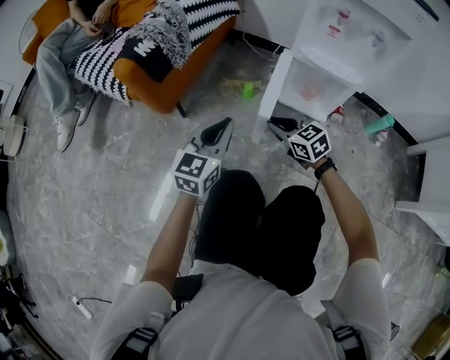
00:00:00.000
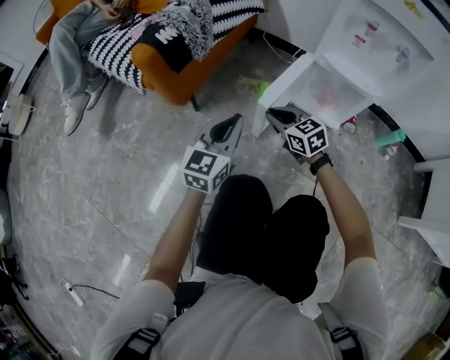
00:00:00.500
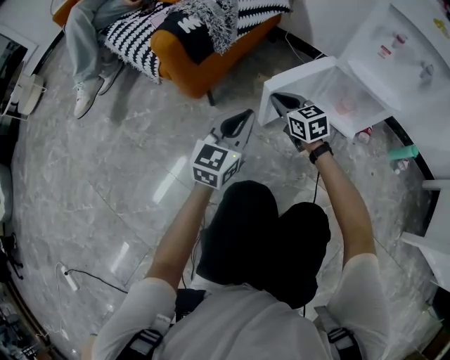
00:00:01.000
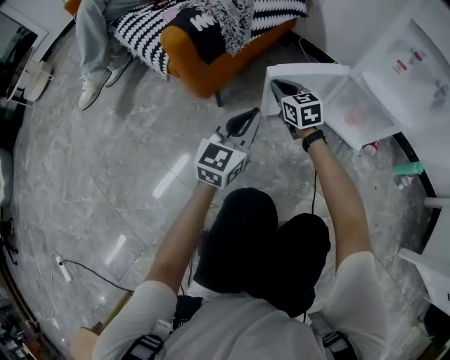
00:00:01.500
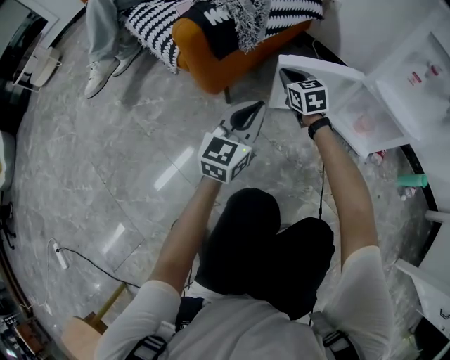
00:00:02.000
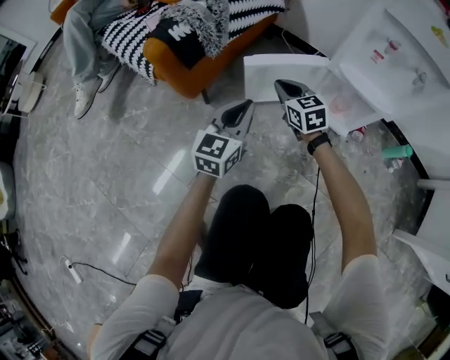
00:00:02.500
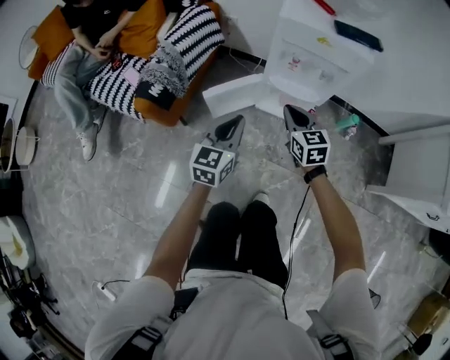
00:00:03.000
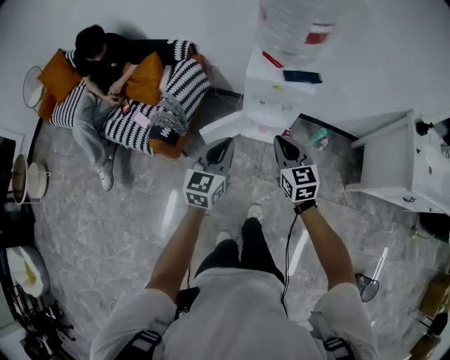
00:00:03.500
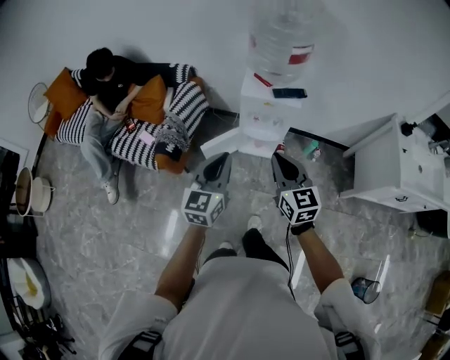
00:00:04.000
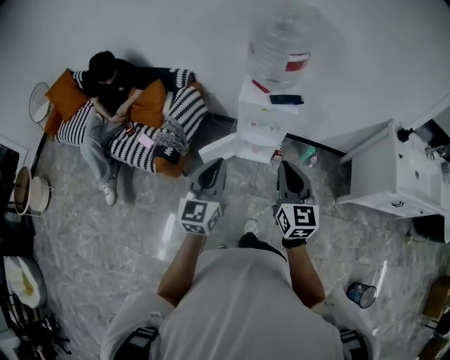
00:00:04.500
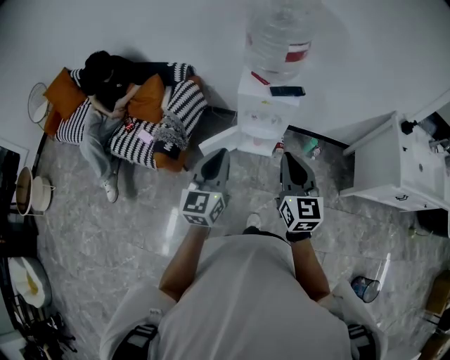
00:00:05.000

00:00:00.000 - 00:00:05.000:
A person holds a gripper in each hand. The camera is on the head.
00:00:00.000 - 00:00:02.500: The left gripper travels forward by some 5 cm. The right gripper goes approximately 15 cm forward, to the left and upward.
00:00:02.500 - 00:00:05.000: Both grippers move upward, approximately 60 cm. The right gripper changes its angle by some 40 degrees.

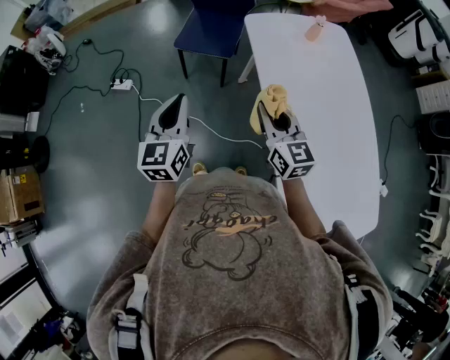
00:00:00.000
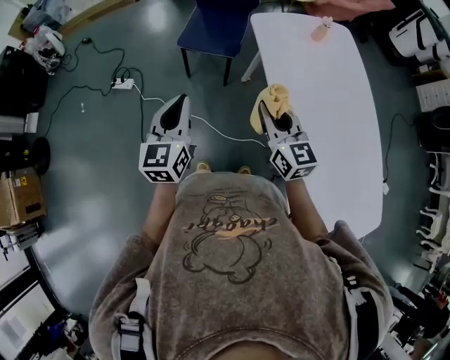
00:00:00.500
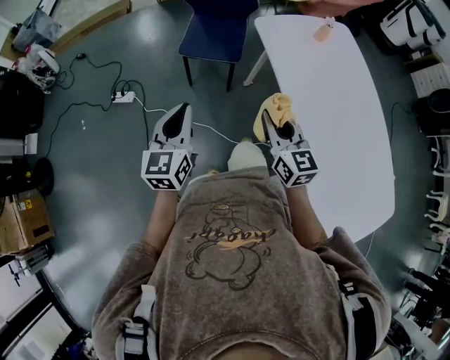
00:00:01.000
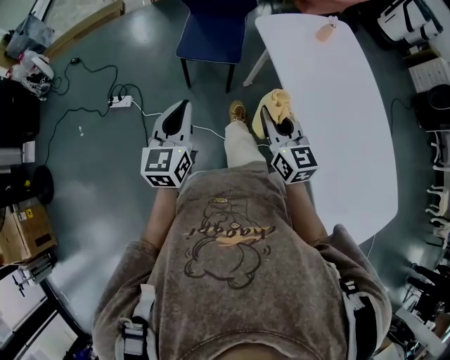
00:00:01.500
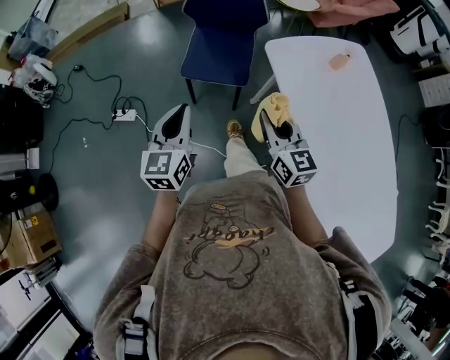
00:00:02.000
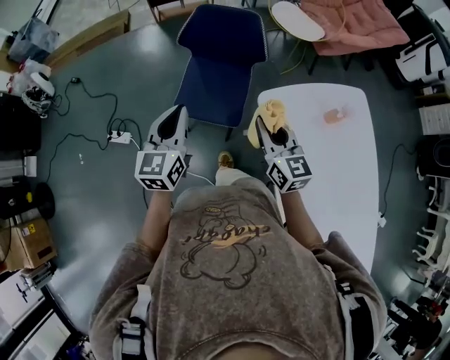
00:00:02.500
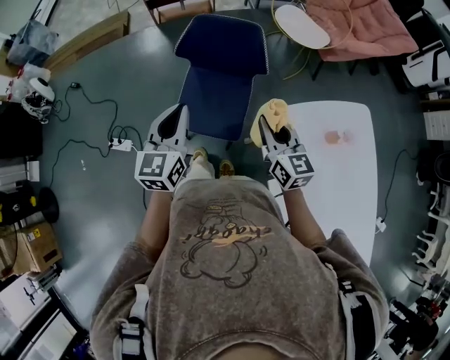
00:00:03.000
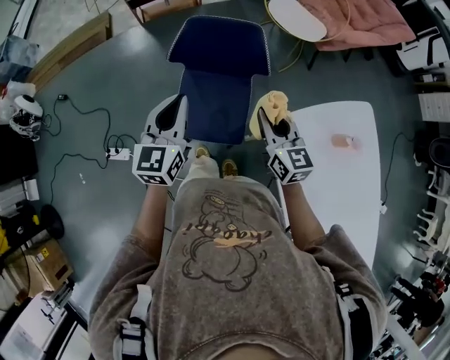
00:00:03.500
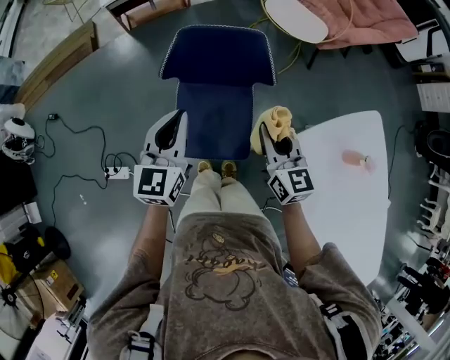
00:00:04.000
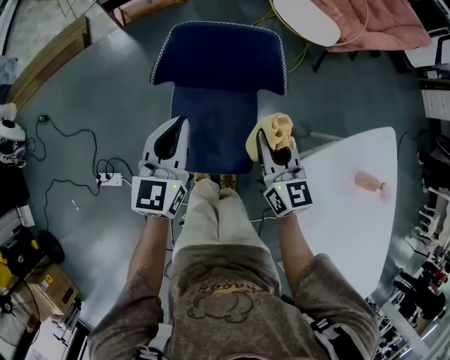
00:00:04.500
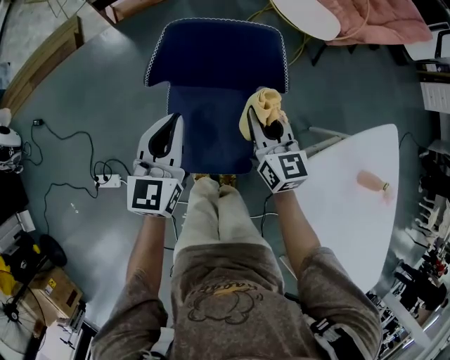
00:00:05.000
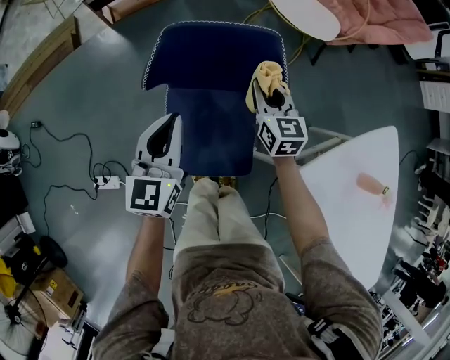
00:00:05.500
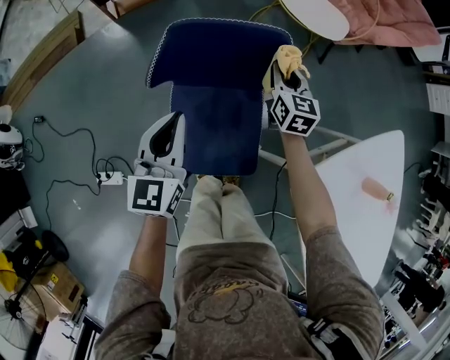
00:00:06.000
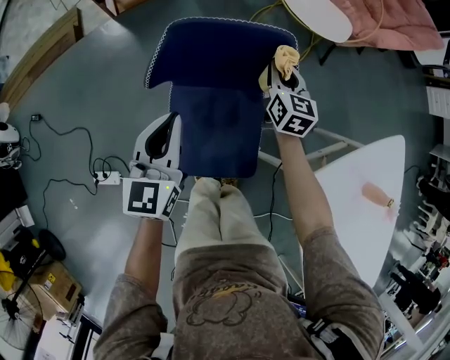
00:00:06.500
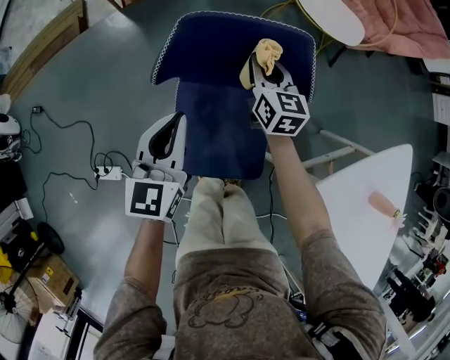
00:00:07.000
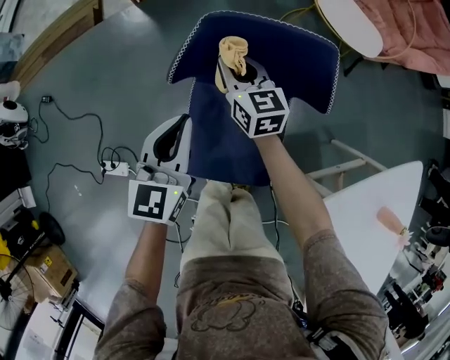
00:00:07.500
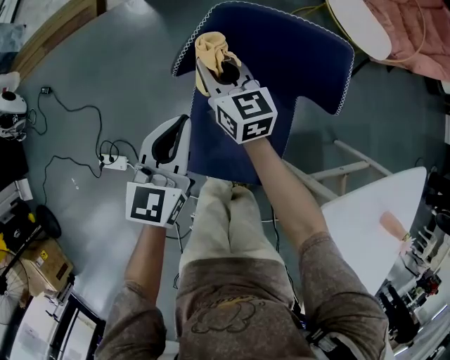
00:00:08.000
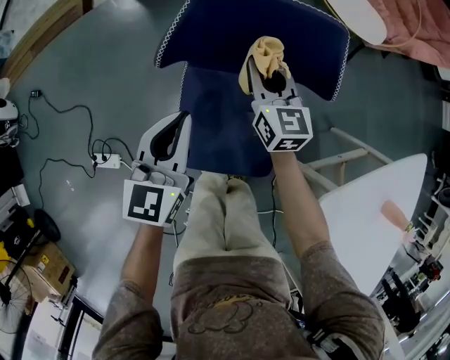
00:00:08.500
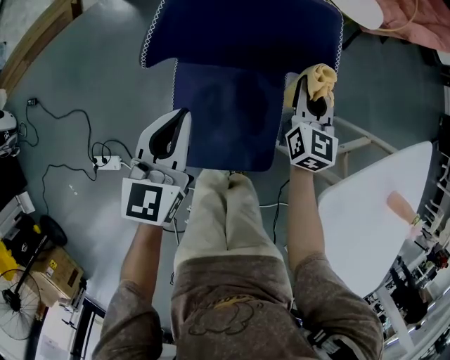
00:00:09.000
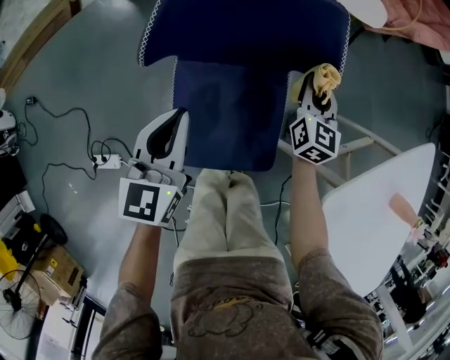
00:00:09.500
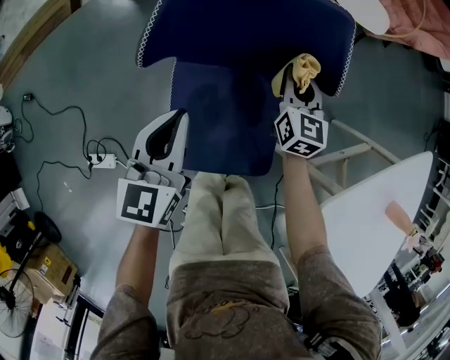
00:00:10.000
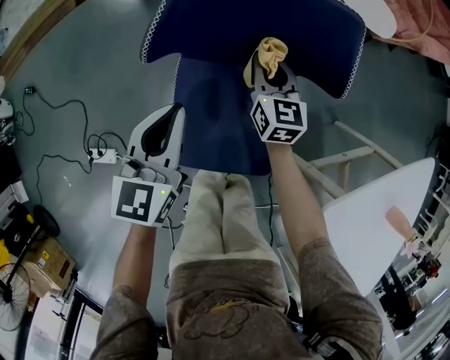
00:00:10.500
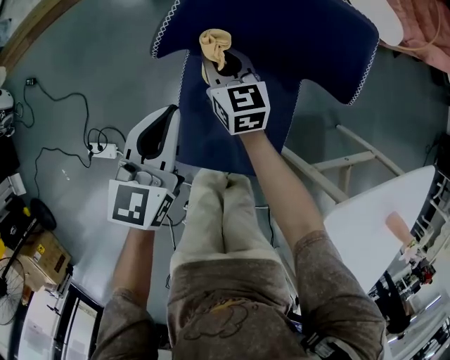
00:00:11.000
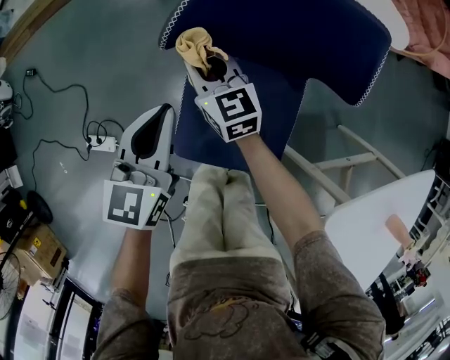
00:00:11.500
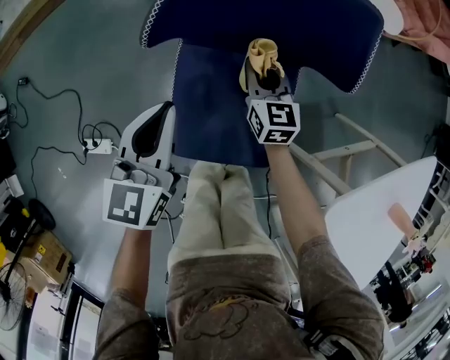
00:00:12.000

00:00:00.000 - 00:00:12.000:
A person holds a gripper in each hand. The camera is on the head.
00:00:00.000 - 00:00:02.000: Both grippers move forward and to the left, roughly 25 cm.
00:00:02.000 - 00:00:04.000: The two grippers travel together, forward, some 50 cm.
00:00:04.000 - 00:00:06.000: The left gripper heads downward and forward, covering some 15 cm. Meanwhile the right gripper is displaced forward and downward by roughly 30 cm.
00:00:06.000 - 00:00:08.000: The right gripper travels to the left by roughly 30 cm, and swivels about 30 degrees. Meanwhile the left gripper goes about 10 cm downward and to the left.
00:00:08.000 - 00:00:10.000: The left gripper moves downward, approximately 5 cm, while the right gripper moves roughly 30 cm, and swivels some 40 degrees.
00:00:10.000 - 00:00:12.000: The right gripper is displaced to the left and downward by roughly 15 cm.

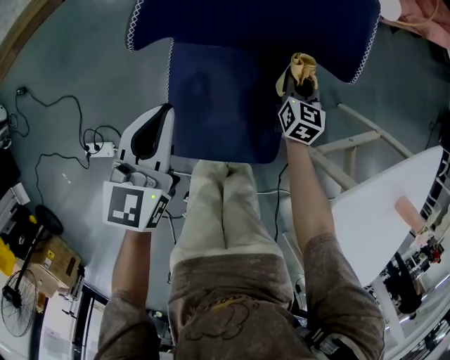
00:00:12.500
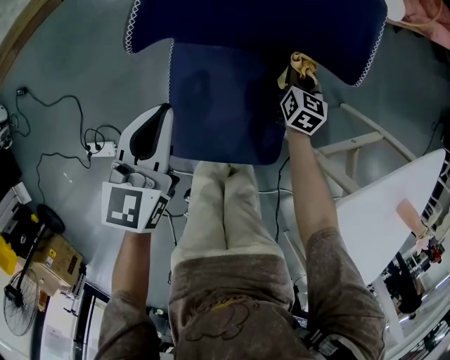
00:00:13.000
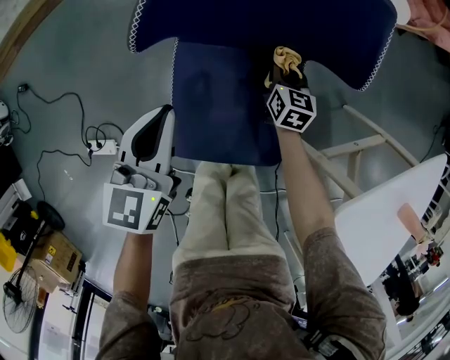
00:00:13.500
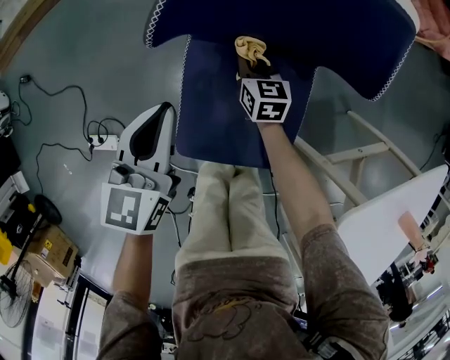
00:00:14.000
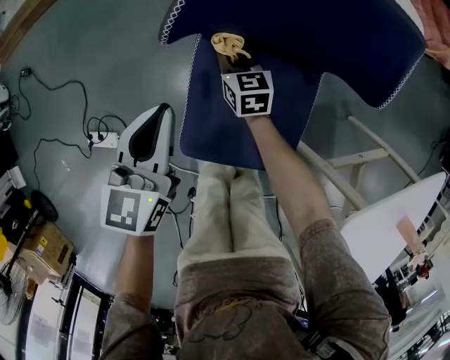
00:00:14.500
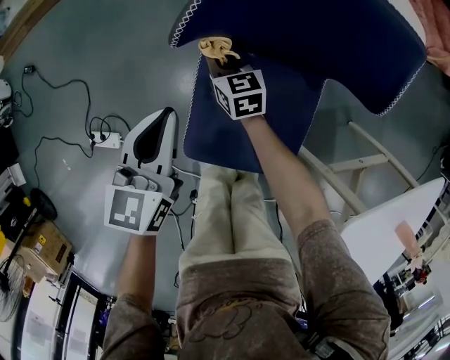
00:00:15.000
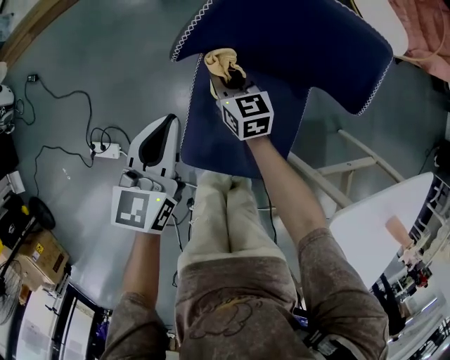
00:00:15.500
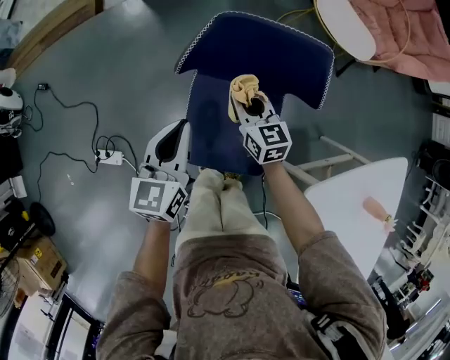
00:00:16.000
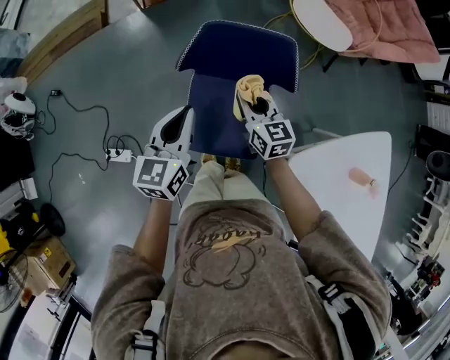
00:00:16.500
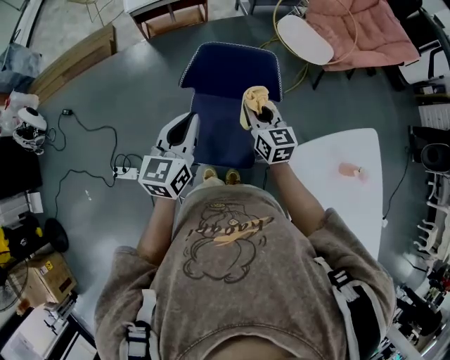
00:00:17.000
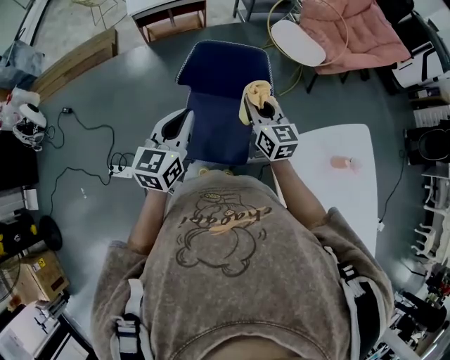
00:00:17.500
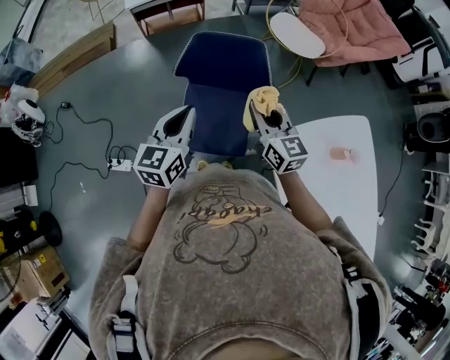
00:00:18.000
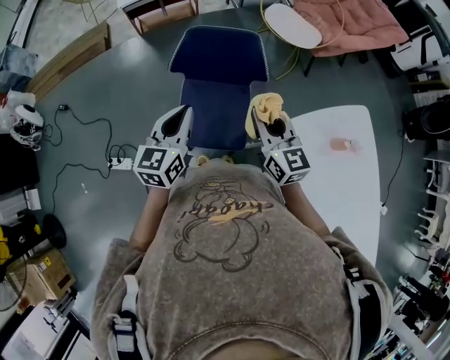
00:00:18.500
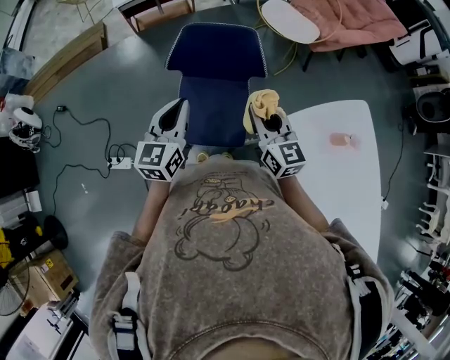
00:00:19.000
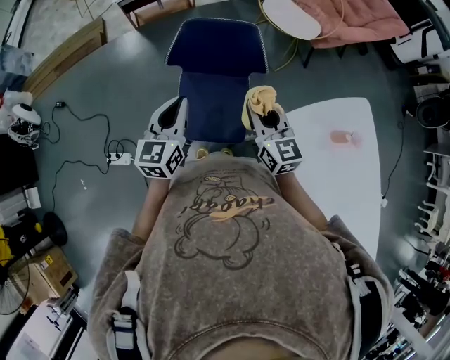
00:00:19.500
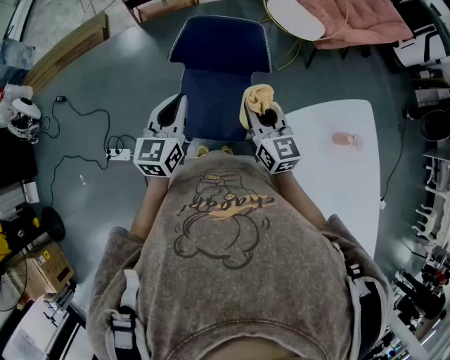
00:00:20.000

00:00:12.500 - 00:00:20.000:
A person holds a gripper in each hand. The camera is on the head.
00:00:12.500 - 00:00:14.500: The left gripper shifts some 5 cm to the left. The right gripper shifts some 25 cm to the left, and swivels some 30 degrees.
00:00:14.500 - 00:00:16.500: The grippers both shift upward by some 30 cm.
00:00:16.500 - 00:00:18.000: The right gripper goes roughly 25 cm upward, backward and to the right. Meanwhile the left gripper heads backward and upward, covering approximately 15 cm.
00:00:18.000 - 00:00:20.000: The grippers stay close to where they were, moving slightly.

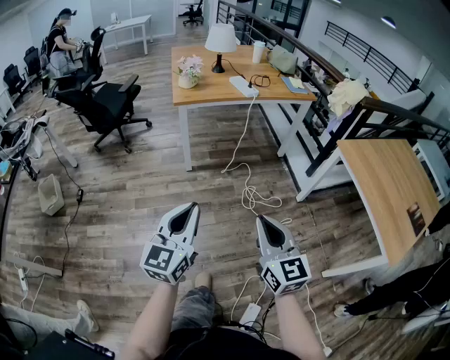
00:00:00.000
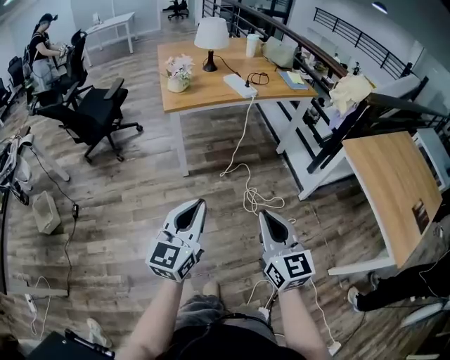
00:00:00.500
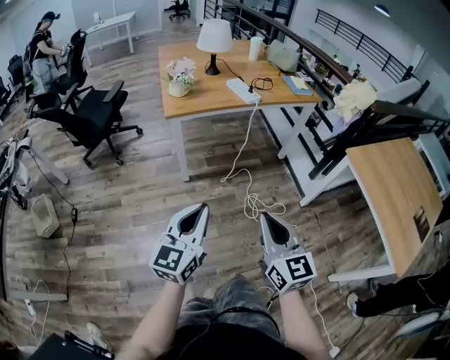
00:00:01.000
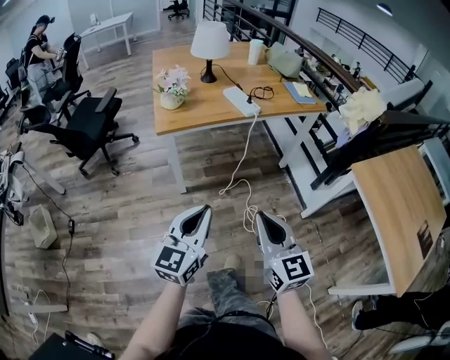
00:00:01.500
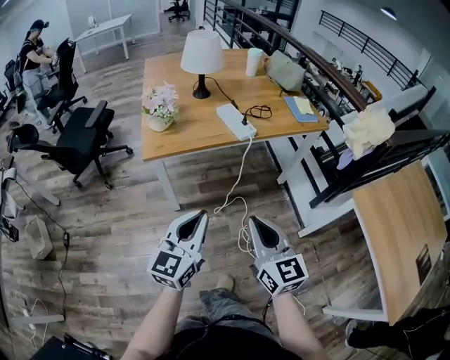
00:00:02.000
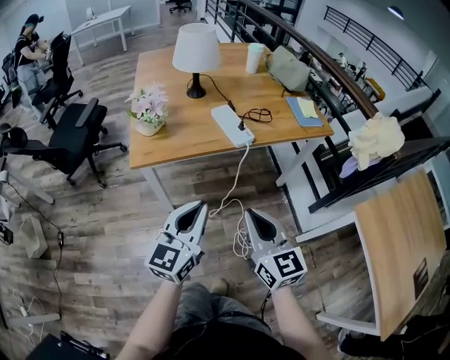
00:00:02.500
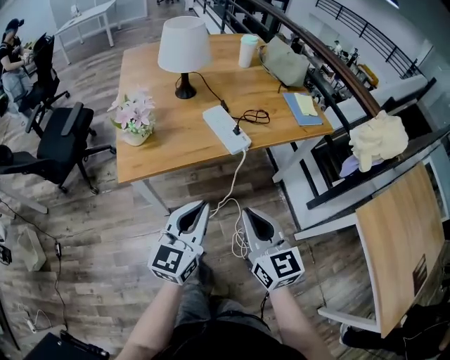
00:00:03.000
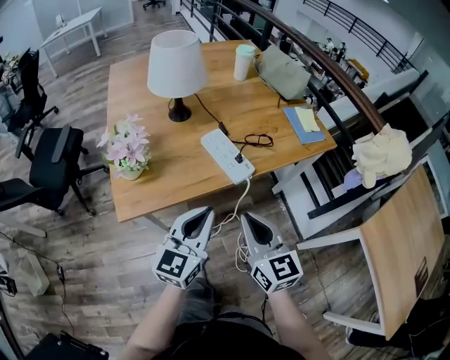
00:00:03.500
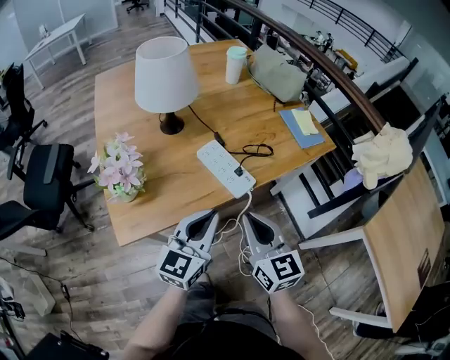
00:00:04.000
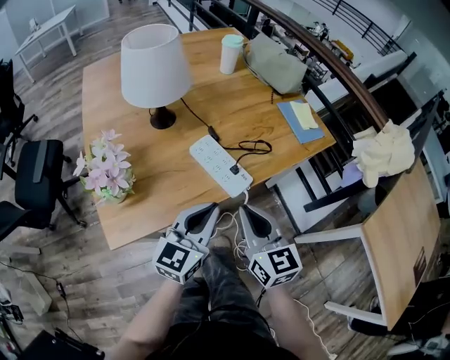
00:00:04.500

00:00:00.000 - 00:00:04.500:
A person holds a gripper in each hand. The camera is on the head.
00:00:00.000 - 00:00:02.000: Both grippers move forward, approximately 40 cm.
00:00:02.000 - 00:00:04.500: The grippers both shift forward by approximately 35 cm.
